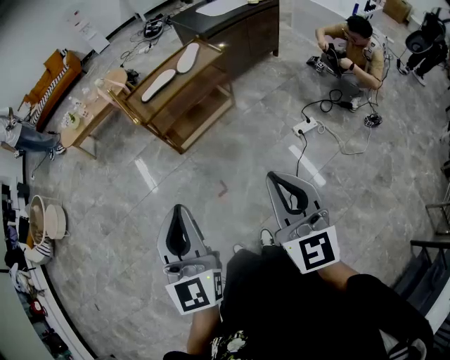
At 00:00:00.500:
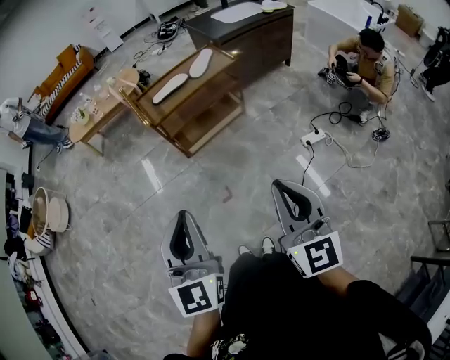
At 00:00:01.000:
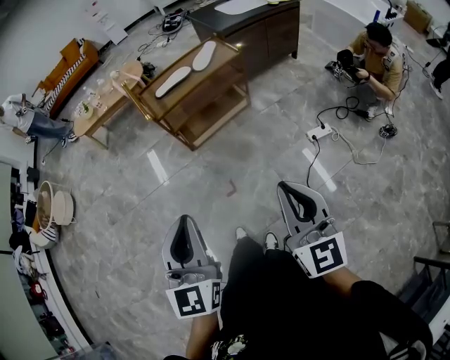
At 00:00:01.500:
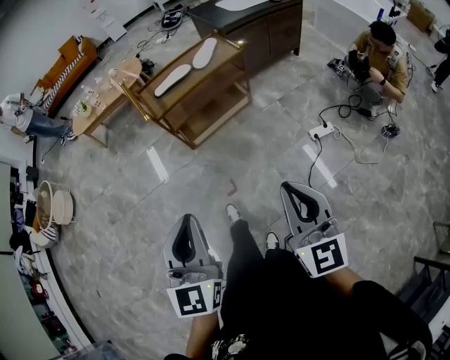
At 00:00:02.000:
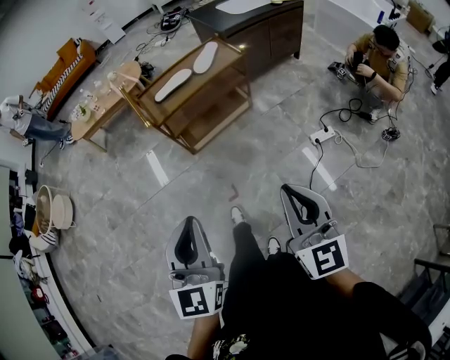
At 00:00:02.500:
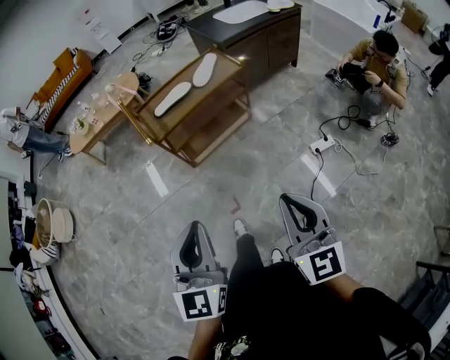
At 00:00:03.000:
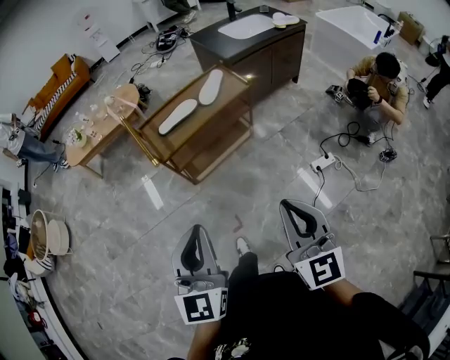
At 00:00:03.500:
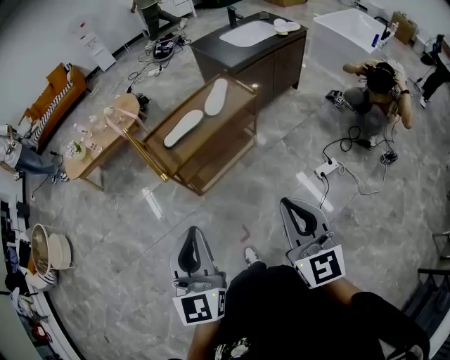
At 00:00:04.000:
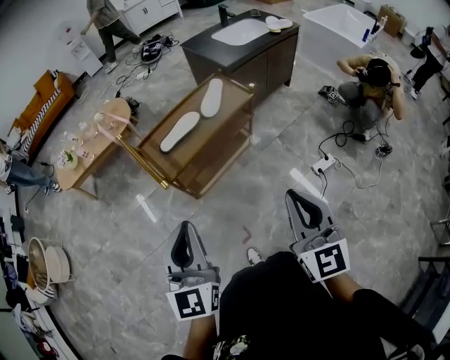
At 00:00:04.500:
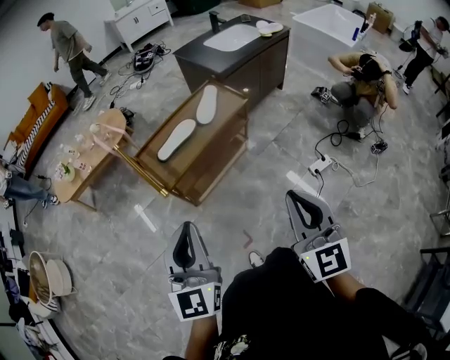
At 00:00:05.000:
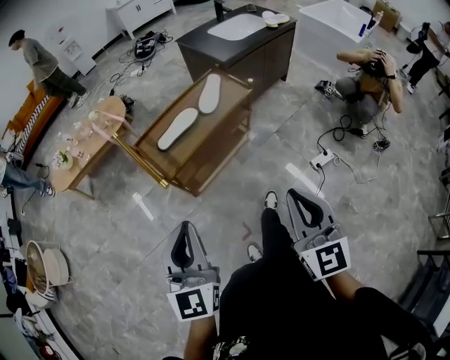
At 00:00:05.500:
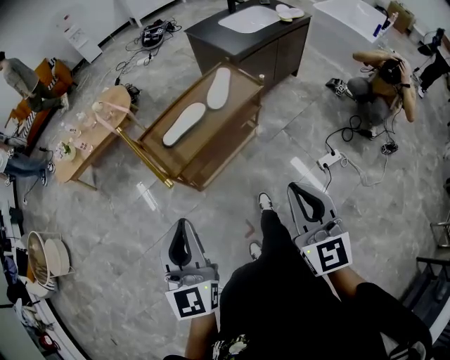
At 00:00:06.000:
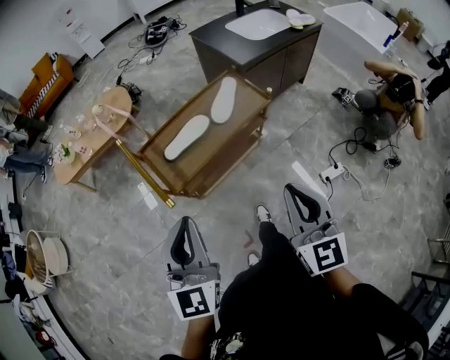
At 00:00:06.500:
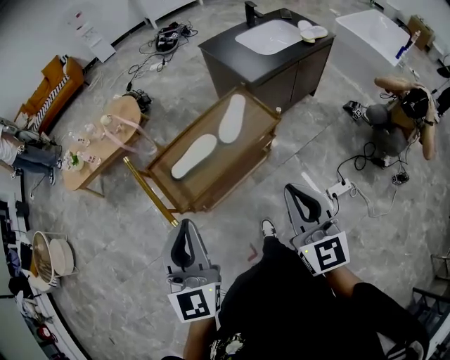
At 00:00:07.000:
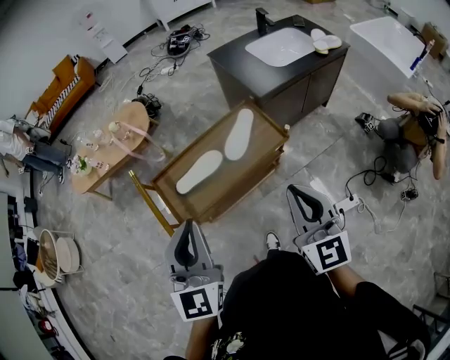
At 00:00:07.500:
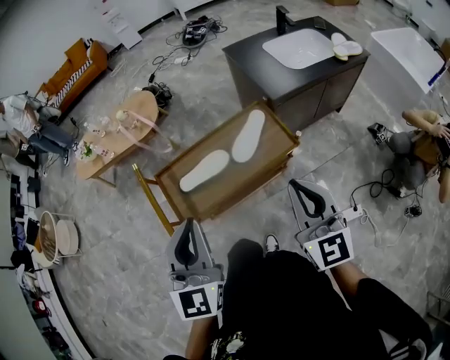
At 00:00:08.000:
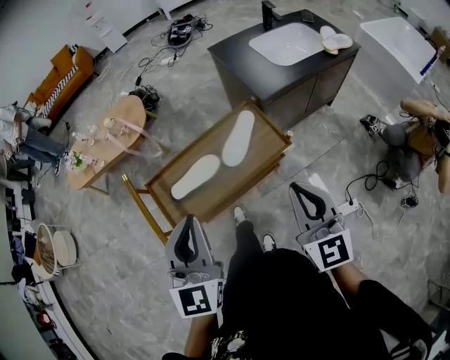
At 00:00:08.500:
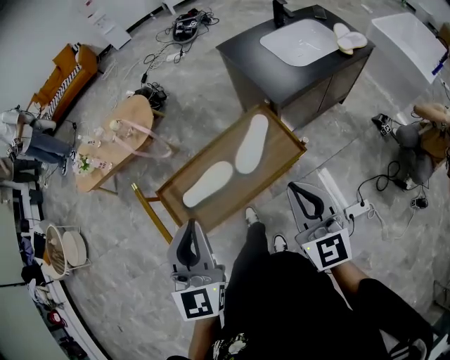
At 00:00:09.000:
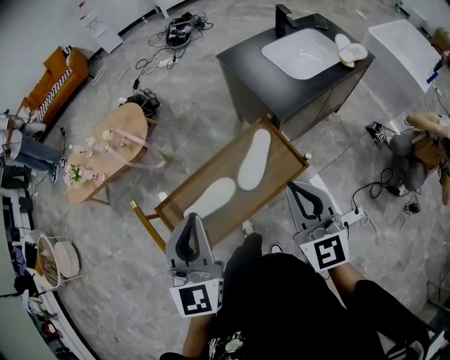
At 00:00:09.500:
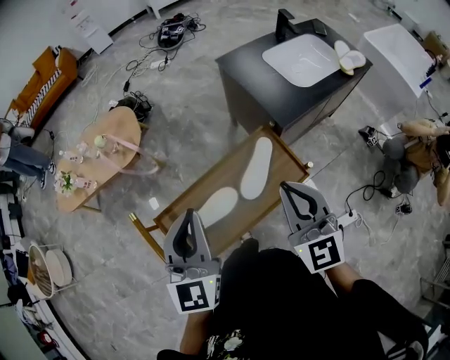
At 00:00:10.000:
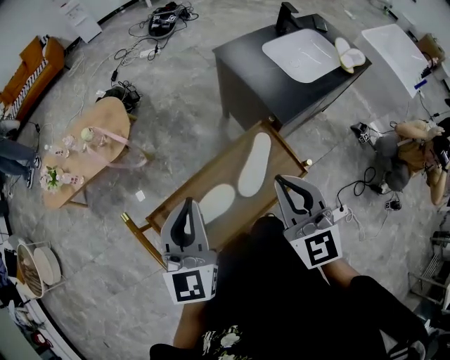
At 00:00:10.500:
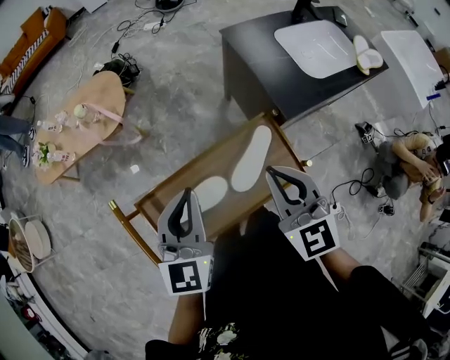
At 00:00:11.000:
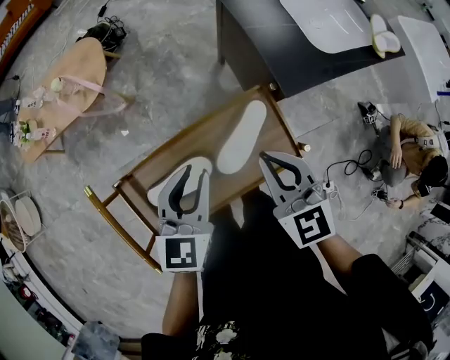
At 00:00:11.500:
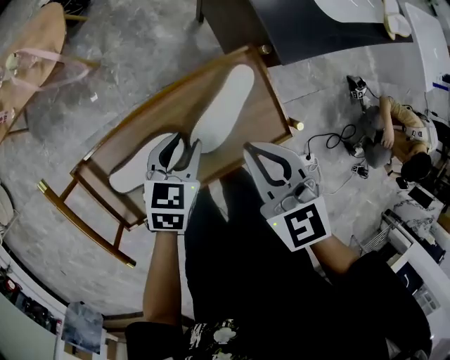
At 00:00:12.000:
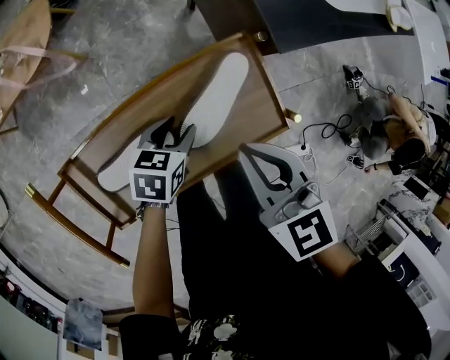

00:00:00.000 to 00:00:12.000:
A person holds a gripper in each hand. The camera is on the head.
00:00:00.000 to 00:00:02.000: The right gripper is displaced forward by approximately 5 cm; the left gripper changes place by approximately 5 cm.
00:00:02.000 to 00:00:04.000: Both grippers travel together forward and to the left, roughly 25 cm.
00:00:04.000 to 00:00:06.000: The grippers both shift forward by approximately 15 cm.
00:00:06.000 to 00:00:08.000: Both grippers travel together forward and to the right, approximately 20 cm.
00:00:08.000 to 00:00:10.000: The right gripper shifts some 20 cm forward and to the left. The left gripper travels forward by about 20 cm.
00:00:10.000 to 00:00:12.000: The right gripper travels downward by roughly 15 cm, and turns by roughly 30 degrees; the left gripper moves downward and to the right, some 35 cm, angles its fingers downward, by some 40 degrees, and opens its fingers.

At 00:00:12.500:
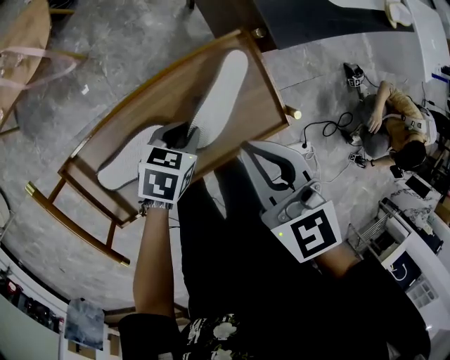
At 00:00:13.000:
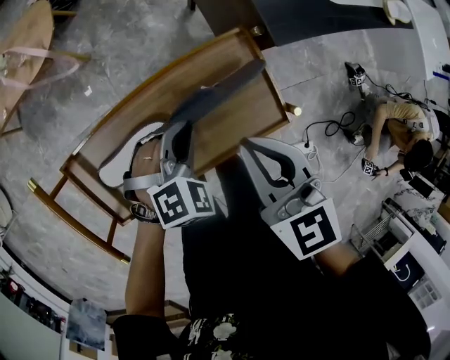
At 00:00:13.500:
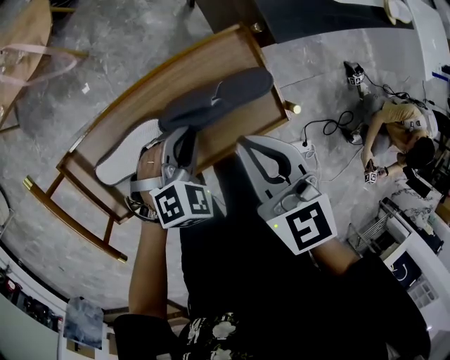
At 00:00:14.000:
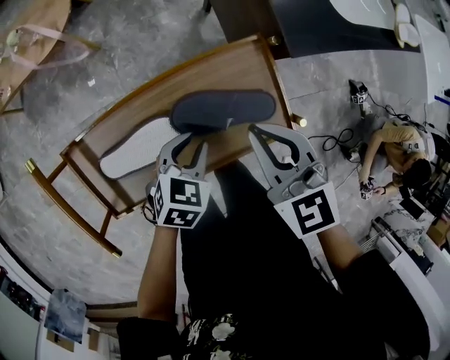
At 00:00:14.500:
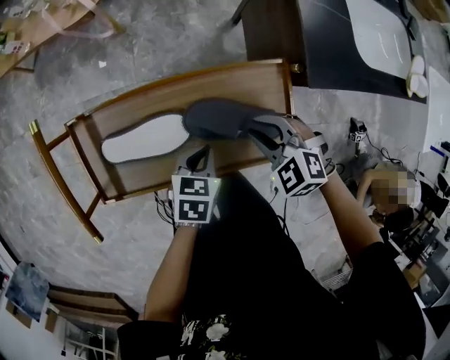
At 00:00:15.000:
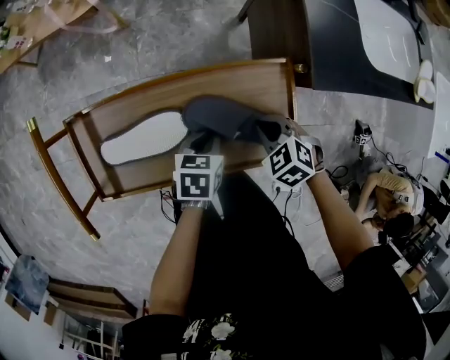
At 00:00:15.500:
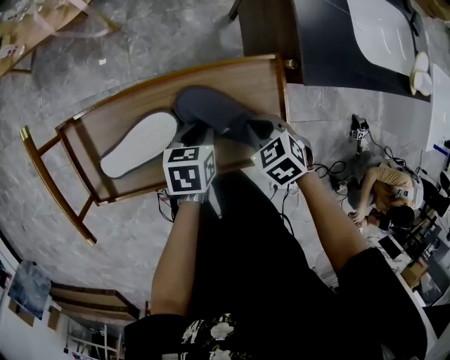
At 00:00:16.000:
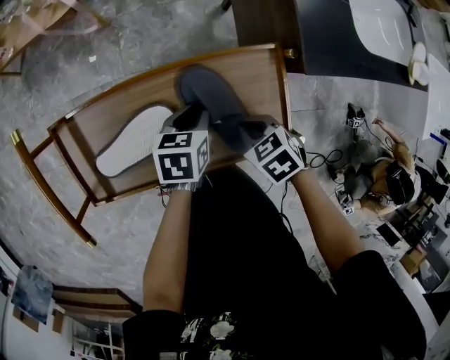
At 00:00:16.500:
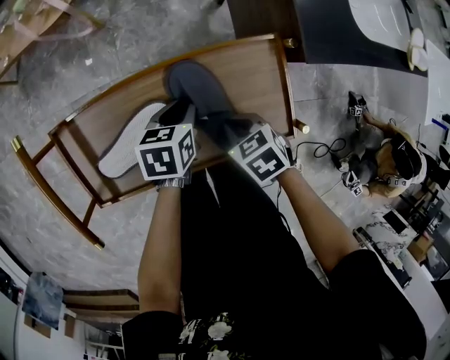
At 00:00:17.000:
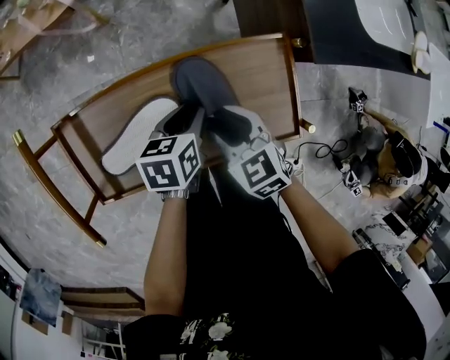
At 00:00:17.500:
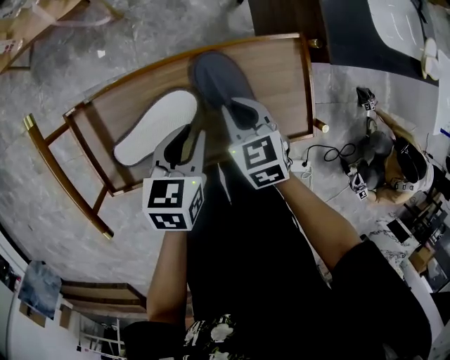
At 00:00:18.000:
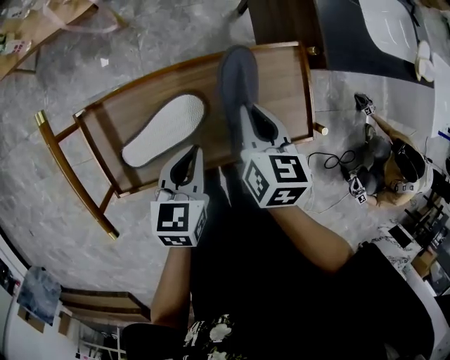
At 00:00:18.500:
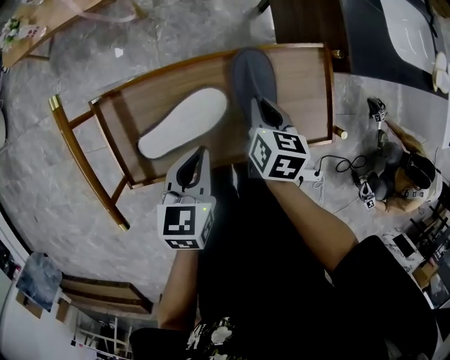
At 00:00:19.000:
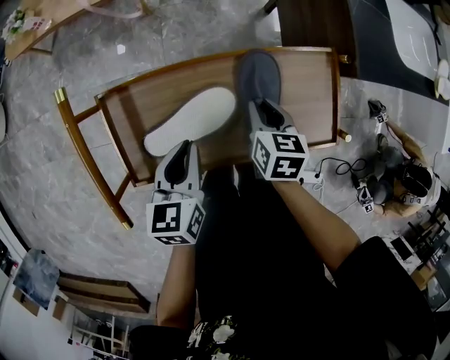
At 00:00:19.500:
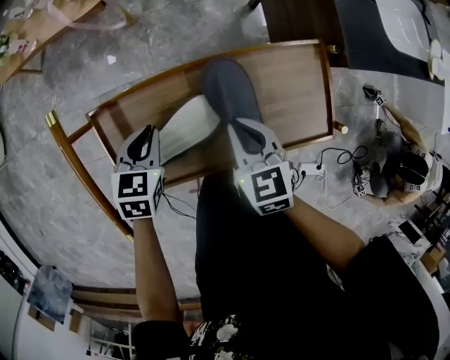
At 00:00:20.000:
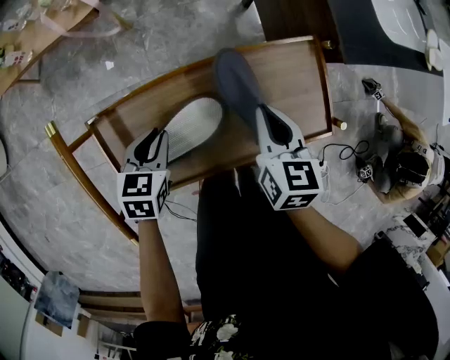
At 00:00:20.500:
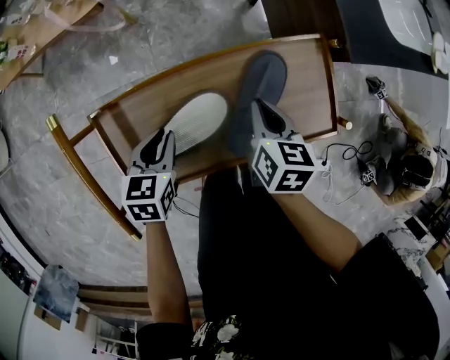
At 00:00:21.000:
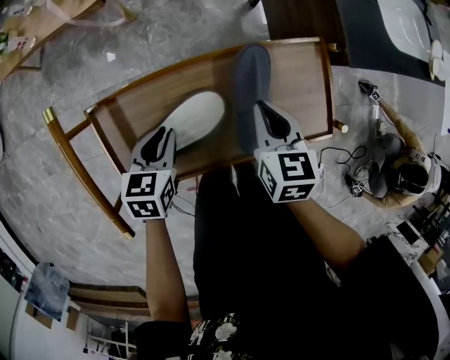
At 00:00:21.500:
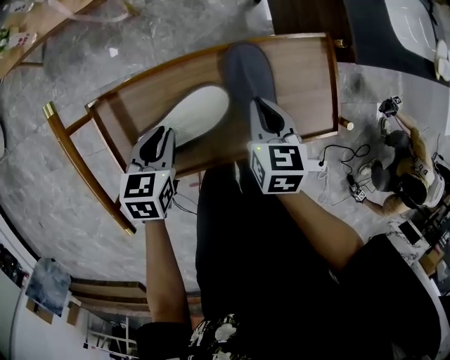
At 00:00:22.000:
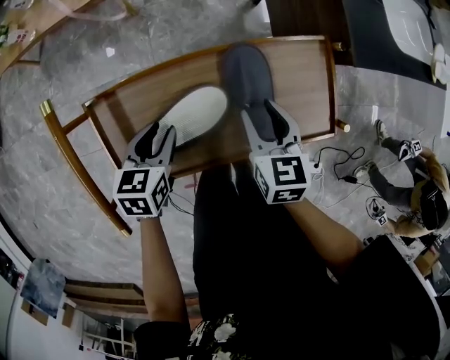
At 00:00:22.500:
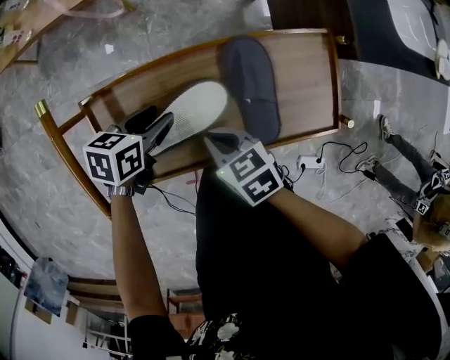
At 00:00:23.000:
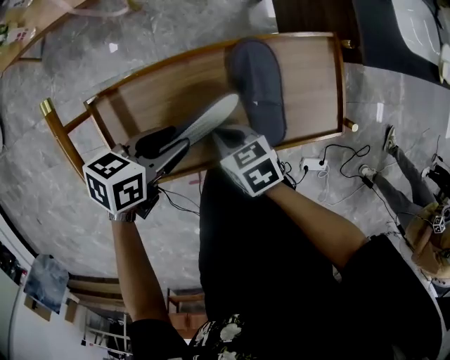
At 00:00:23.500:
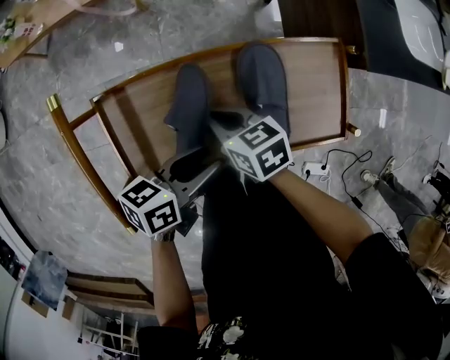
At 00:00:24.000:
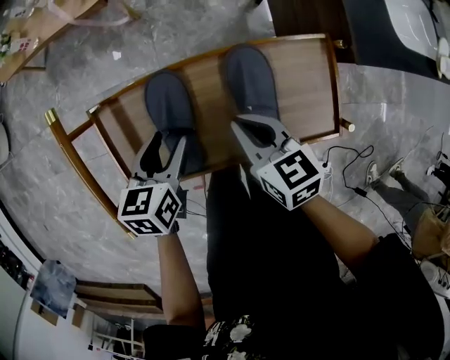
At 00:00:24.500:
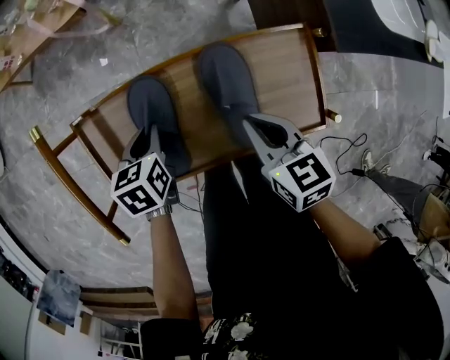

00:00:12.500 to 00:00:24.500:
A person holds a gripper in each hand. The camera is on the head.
00:00:12.500 to 00:00:14.500: The left gripper changes its angle by approximately 30 degrees. Meanwhile the right gripper goes some 15 cm downward, rolls counterclockwise, seen from behind, by roughly 50 degrees, and opens its fingers.
00:00:14.500 to 00:00:16.500: The left gripper shifts some 10 cm forward. Meanwhile the right gripper travels downward by some 10 cm, rolls clockwise, seen from behind, by approximately 40 degrees, and closes up.
00:00:16.500 to 00:00:18.500: The right gripper travels forward by about 5 cm, reaches about 10 cm upward, then returns, turns by some 50 degrees, and opens, then closes again. The left gripper moves backward, to the left and upward, about 15 cm.
00:00:18.500 to 00:00:20.500: The left gripper moves to the left and downward, approximately 10 cm, while the right gripper goes upward and returns, some 5 cm each way.
00:00:20.500 to 00:00:22.500: The right gripper moves roughly 15 cm, rotates some 40 degrees, and opens, then closes once more, while the left gripper rotates roughly 20 degrees, and opens.
00:00:22.500 to 00:00:24.500: The left gripper reaches roughly 10 cm upward, then returns, swivels about 30 degrees, and closes its fingers, while the right gripper moves about 15 cm.

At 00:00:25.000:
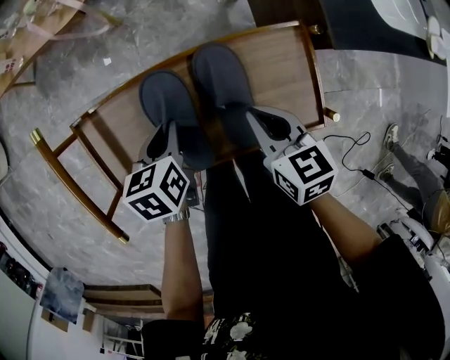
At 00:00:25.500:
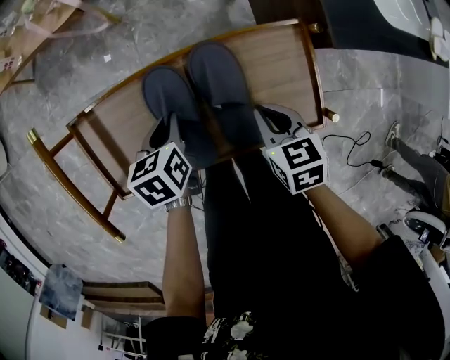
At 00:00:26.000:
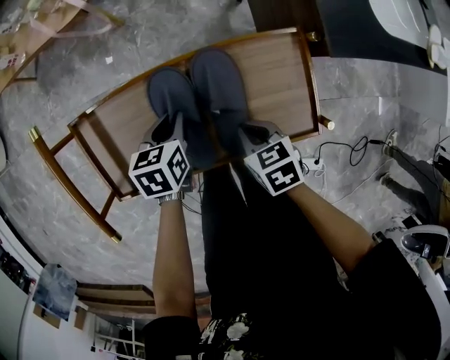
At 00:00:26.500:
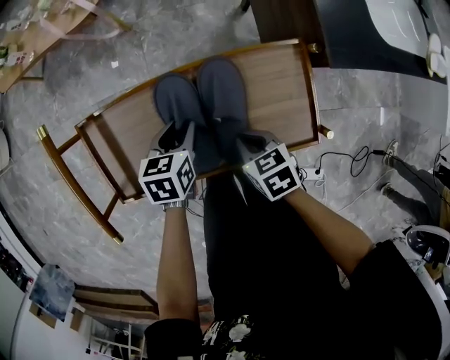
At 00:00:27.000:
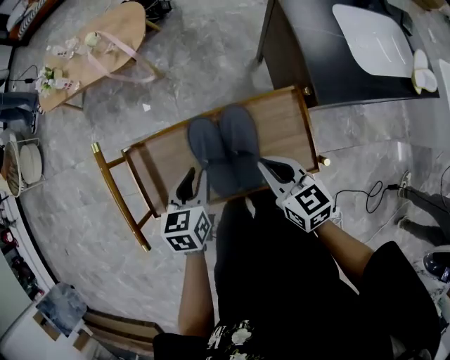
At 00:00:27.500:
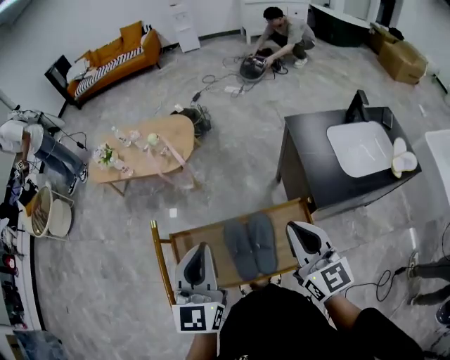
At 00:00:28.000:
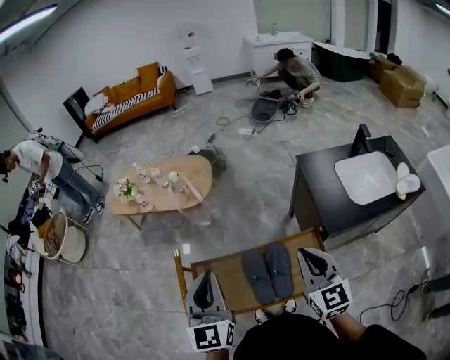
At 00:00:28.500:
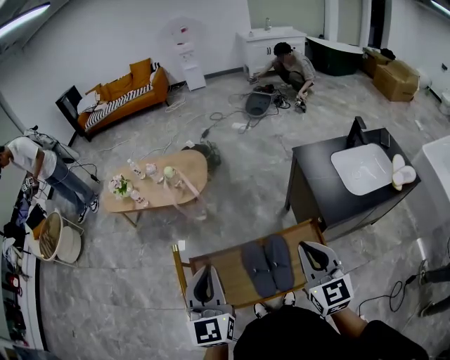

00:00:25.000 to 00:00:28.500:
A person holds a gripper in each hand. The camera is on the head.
00:00:25.000 to 00:00:27.000: The grippers both shift upward by about 5 cm.
00:00:27.000 to 00:00:28.500: The two grippers go some 30 cm upward. The right gripper rotates approximately 40 degrees. The left gripper angles its fingers upward, by approximately 40 degrees, and closes.
